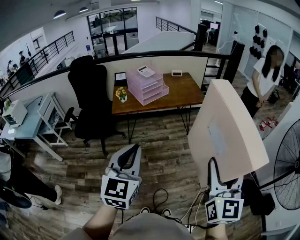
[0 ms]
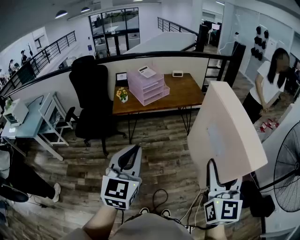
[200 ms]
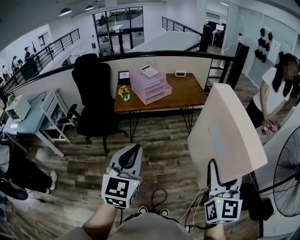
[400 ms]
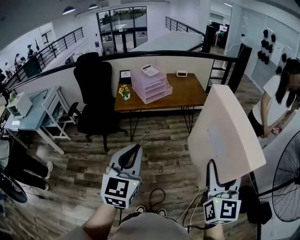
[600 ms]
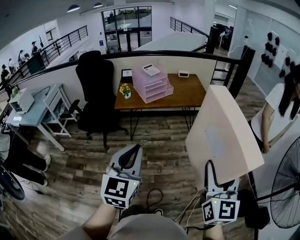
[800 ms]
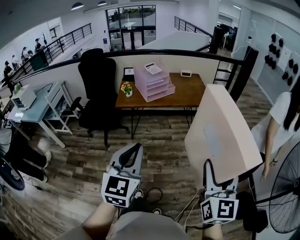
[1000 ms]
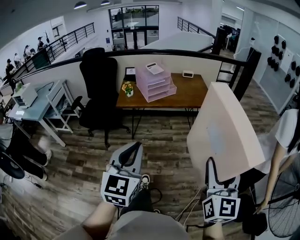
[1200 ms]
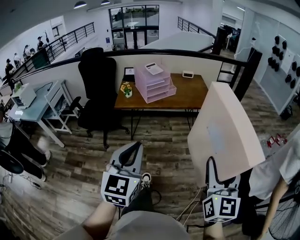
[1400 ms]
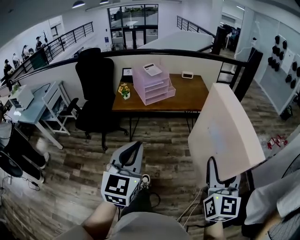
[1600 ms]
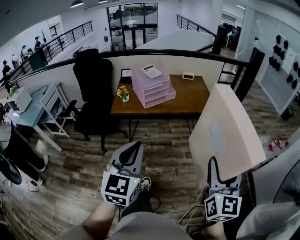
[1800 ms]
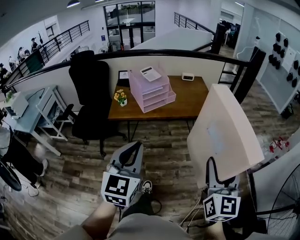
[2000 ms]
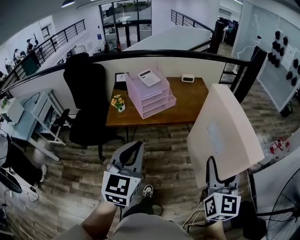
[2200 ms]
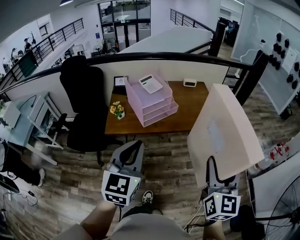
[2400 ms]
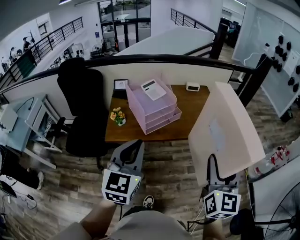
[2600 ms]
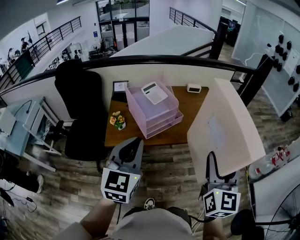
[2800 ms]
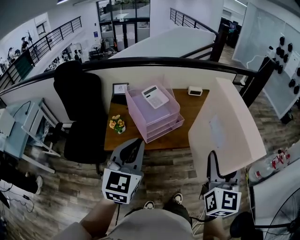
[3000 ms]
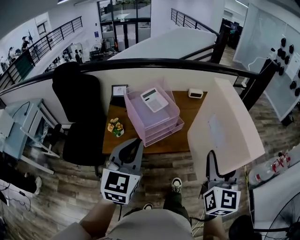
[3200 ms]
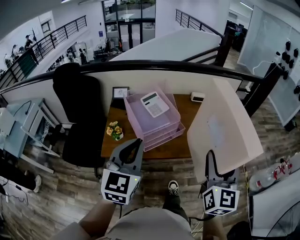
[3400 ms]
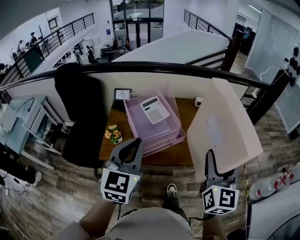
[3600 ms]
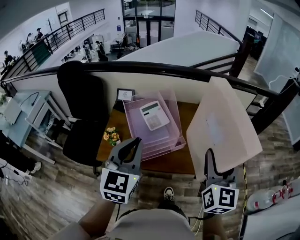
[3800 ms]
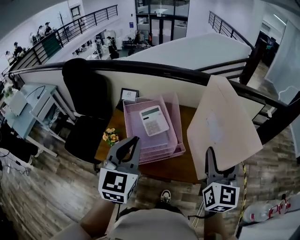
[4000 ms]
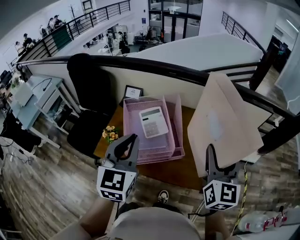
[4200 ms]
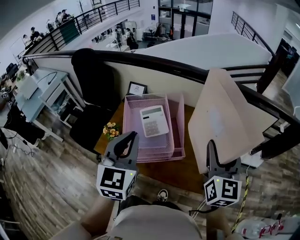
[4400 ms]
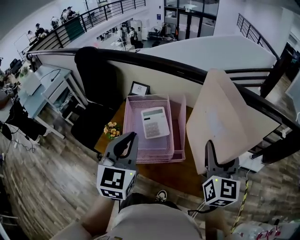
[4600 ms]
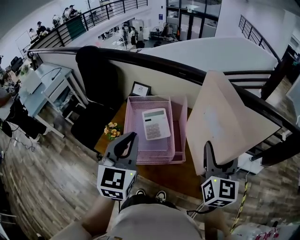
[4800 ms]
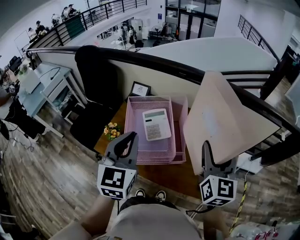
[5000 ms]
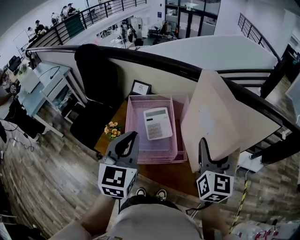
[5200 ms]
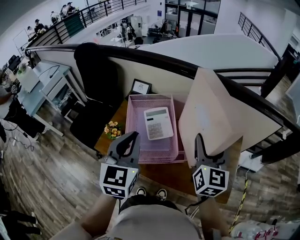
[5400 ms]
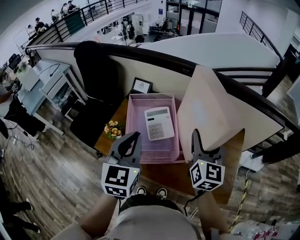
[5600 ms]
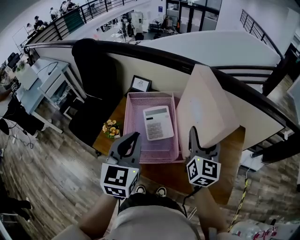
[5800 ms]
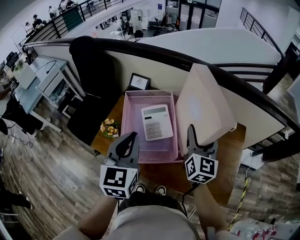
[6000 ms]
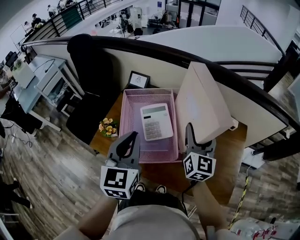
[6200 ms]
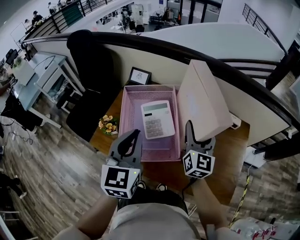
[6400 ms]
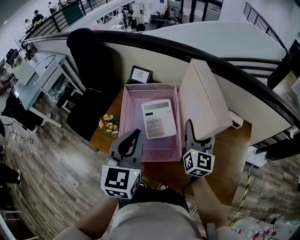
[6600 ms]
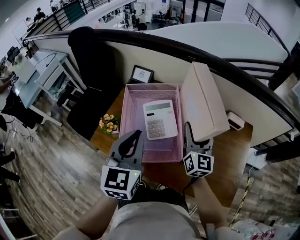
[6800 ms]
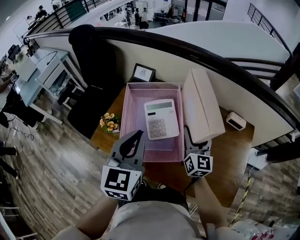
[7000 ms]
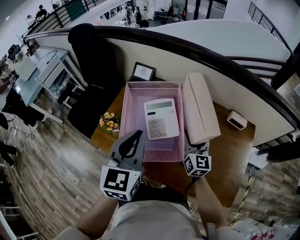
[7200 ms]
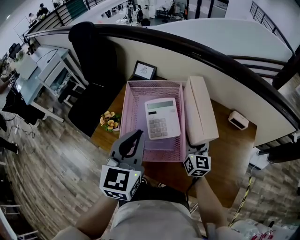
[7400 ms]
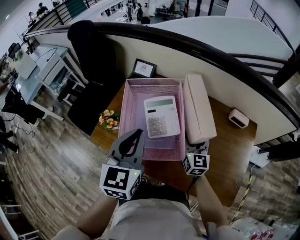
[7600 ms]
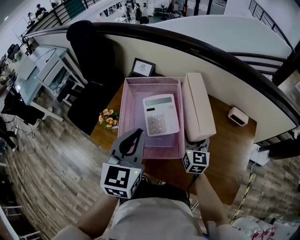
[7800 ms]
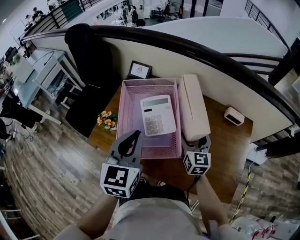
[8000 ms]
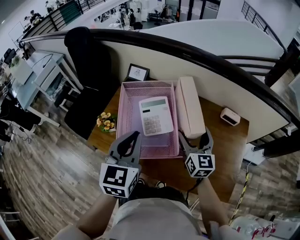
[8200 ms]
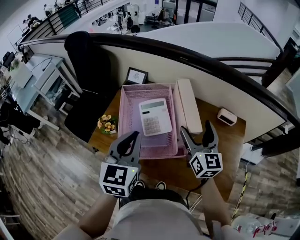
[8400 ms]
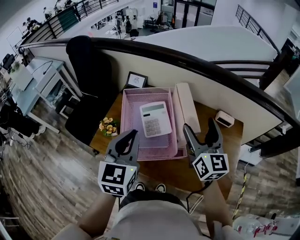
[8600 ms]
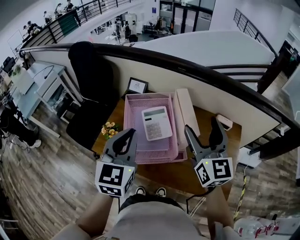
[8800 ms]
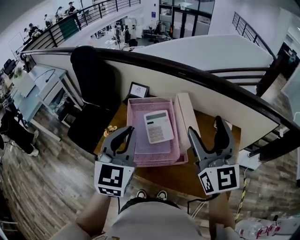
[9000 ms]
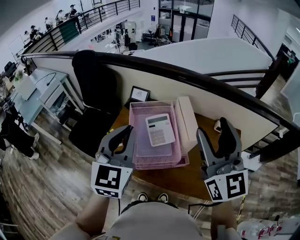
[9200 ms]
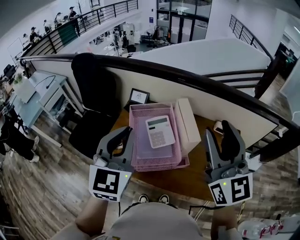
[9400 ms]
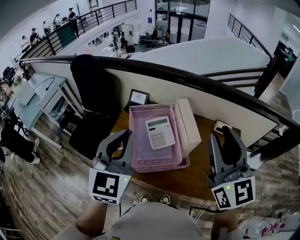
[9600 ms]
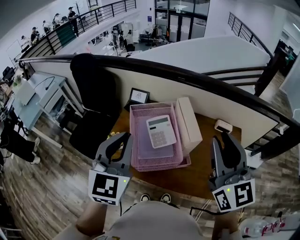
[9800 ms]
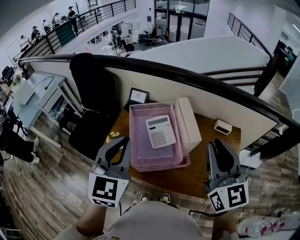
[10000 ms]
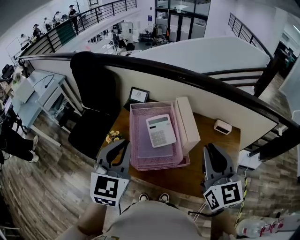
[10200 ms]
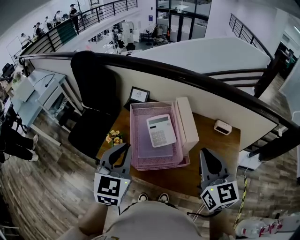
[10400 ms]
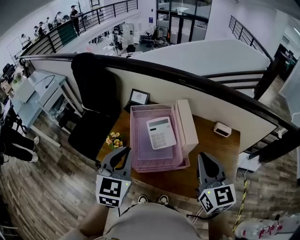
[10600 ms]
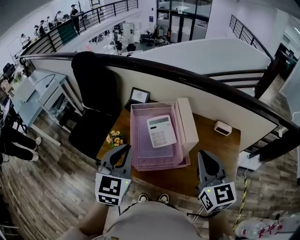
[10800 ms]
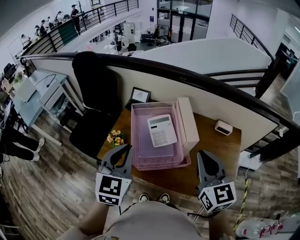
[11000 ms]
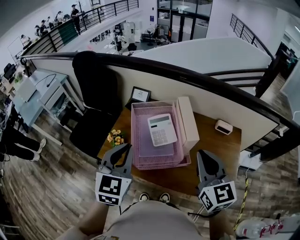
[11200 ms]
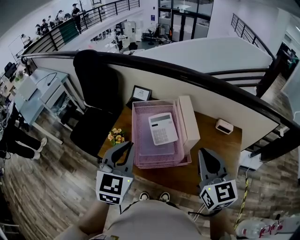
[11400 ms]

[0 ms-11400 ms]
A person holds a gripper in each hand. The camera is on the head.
0 ms to 1400 ms: The right gripper shifts approximately 10 cm forward and to the right. The left gripper shifts about 10 cm to the right.
1400 ms to 2800 ms: The pair of grippers is taken forward, approximately 40 cm.
2800 ms to 4200 ms: The two grippers go about 30 cm forward. The left gripper turns by some 20 degrees. Meanwhile the right gripper changes its angle by some 20 degrees.
4200 ms to 5600 ms: The left gripper shifts by roughly 5 cm; the right gripper is displaced forward, downward and to the left by roughly 15 cm.
5600 ms to 7200 ms: The left gripper moves downward, about 5 cm, while the right gripper travels downward by roughly 20 cm.
7200 ms to 8600 ms: The right gripper moves upward, approximately 20 cm. The left gripper changes place by roughly 5 cm.
8600 ms to 10000 ms: The right gripper goes about 15 cm upward and backward, and closes its fingers, while the left gripper travels upward by some 10 cm.
10000 ms to 11400 ms: The two grippers go some 5 cm downward.

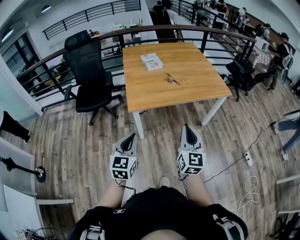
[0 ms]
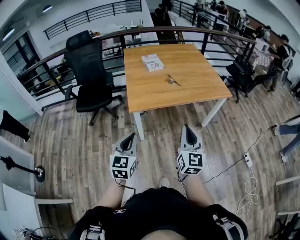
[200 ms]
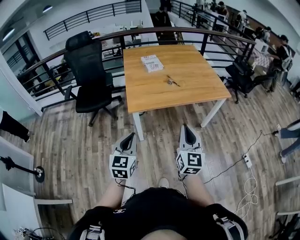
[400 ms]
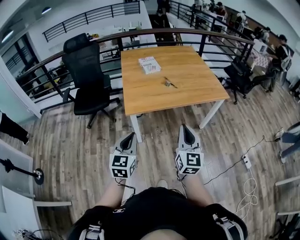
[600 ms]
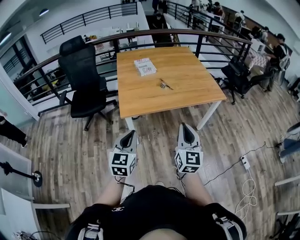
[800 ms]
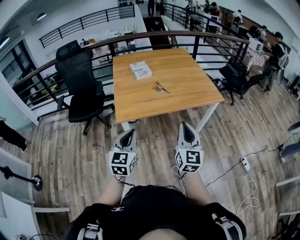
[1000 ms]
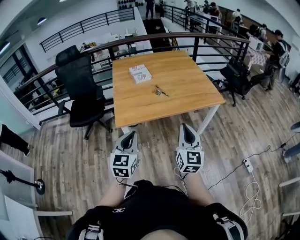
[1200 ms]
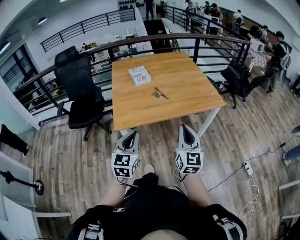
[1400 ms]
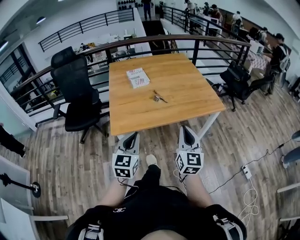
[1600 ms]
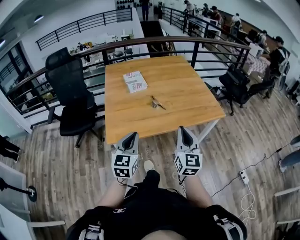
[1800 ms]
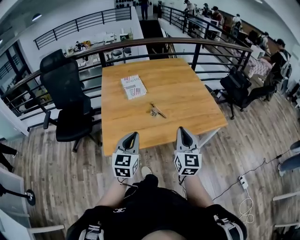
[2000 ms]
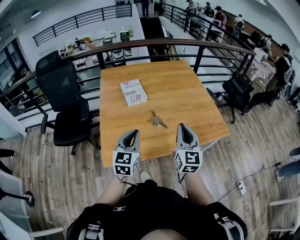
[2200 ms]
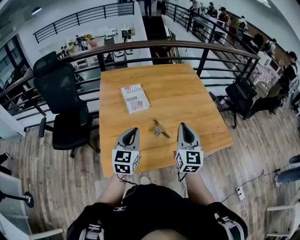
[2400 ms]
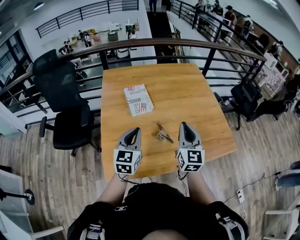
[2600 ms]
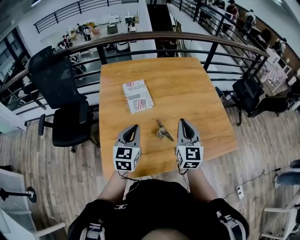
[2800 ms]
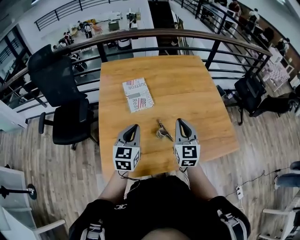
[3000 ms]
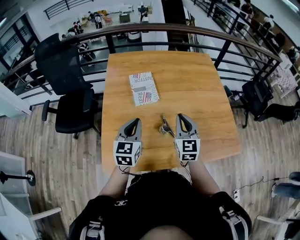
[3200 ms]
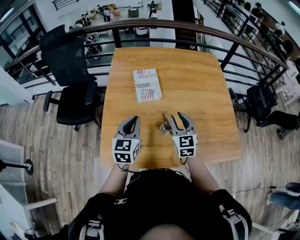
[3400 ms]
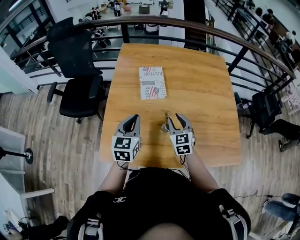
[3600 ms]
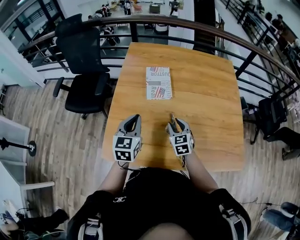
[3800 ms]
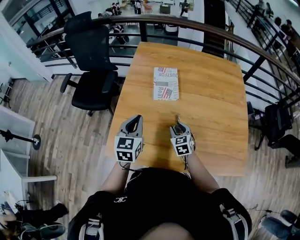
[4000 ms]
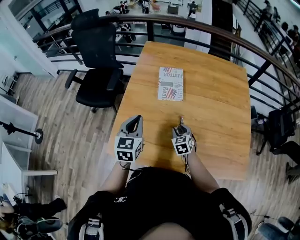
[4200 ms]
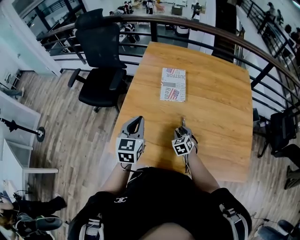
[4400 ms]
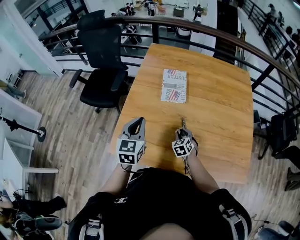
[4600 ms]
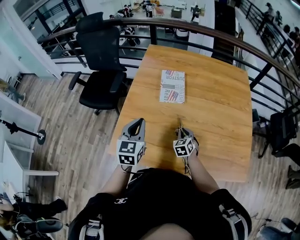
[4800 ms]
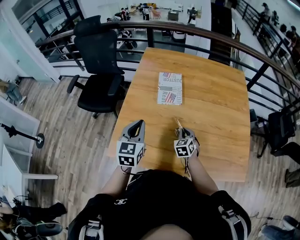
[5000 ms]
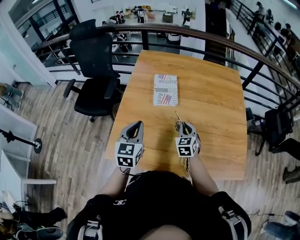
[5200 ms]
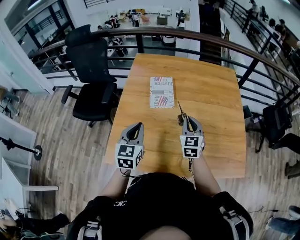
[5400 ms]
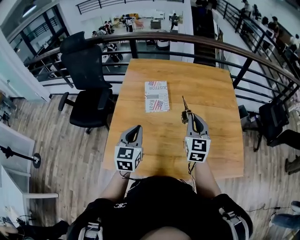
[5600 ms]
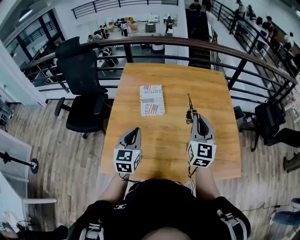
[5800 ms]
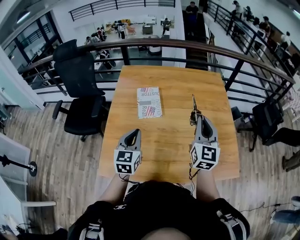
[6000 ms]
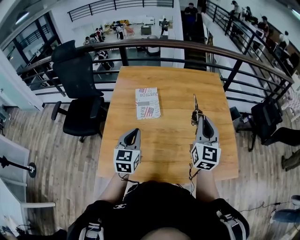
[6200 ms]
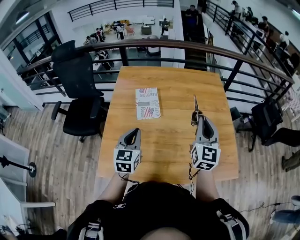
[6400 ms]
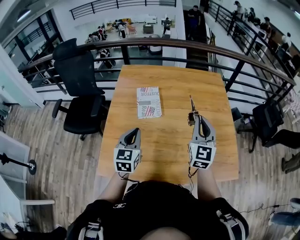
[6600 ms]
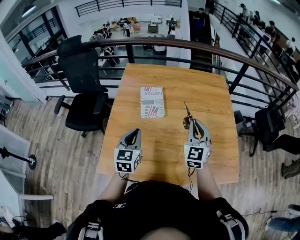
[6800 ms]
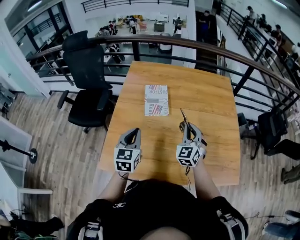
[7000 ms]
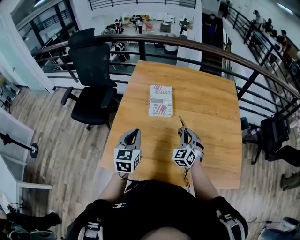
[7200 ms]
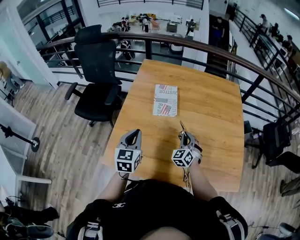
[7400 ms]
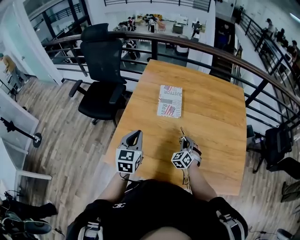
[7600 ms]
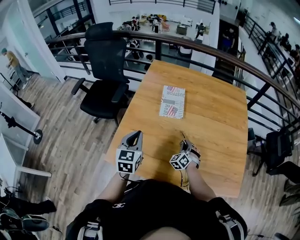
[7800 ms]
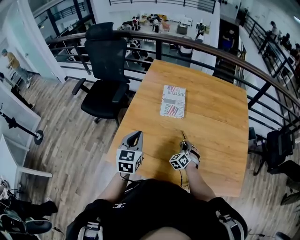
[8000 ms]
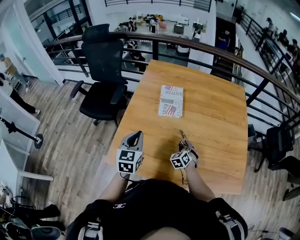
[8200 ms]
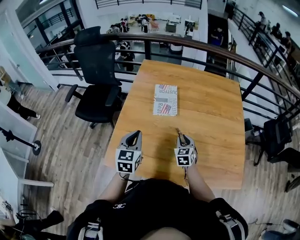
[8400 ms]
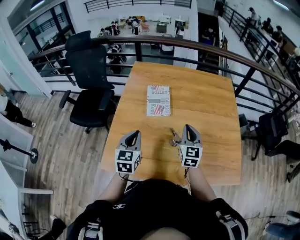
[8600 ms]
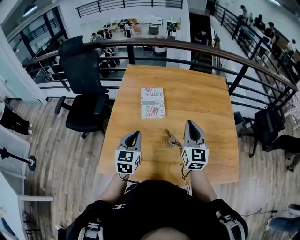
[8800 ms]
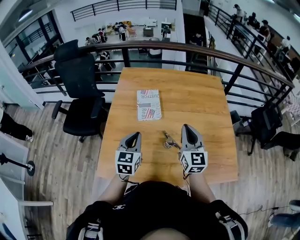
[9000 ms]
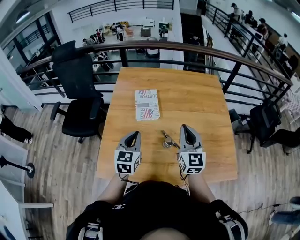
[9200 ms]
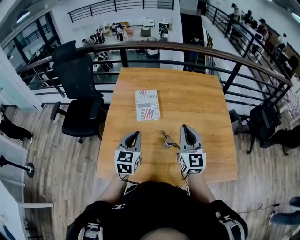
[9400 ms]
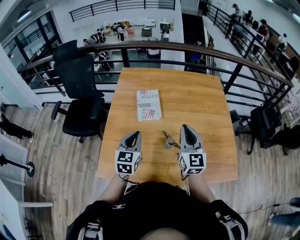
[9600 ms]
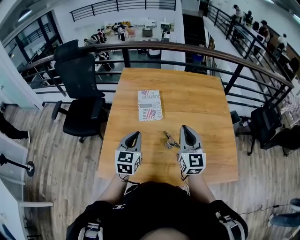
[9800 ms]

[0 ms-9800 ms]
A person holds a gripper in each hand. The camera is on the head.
0 ms to 1400 ms: Both grippers travel together forward and to the right, approximately 20 cm.
1400 ms to 2800 ms: The two grippers travel together, forward, some 60 cm.
2800 ms to 4200 ms: The left gripper changes place by roughly 5 cm, and rotates some 20 degrees. The right gripper travels downward by some 25 cm, tips its fingers downward by approximately 40 degrees, and opens its fingers.
4200 ms to 5600 ms: The right gripper moves upward and to the right, roughly 30 cm, angles its fingers upward, by about 30 degrees, and closes. The left gripper goes some 5 cm to the right.
5600 ms to 7000 ms: The right gripper travels downward by about 5 cm, and changes its angle by about 30 degrees.
7000 ms to 8400 ms: The right gripper is displaced downward by roughly 15 cm, turns by about 30 degrees, and opens up.
8400 ms to 9800 ms: The right gripper moves upward, roughly 20 cm, points its fingers roughly 30 degrees further upward, and closes its fingers; the left gripper shifts roughly 5 cm to the right.

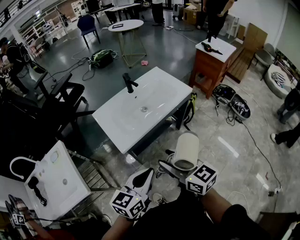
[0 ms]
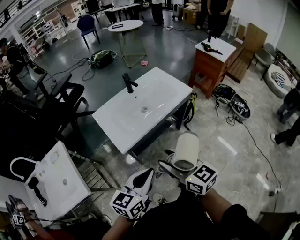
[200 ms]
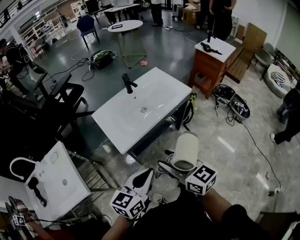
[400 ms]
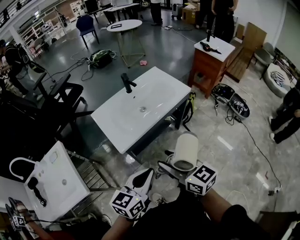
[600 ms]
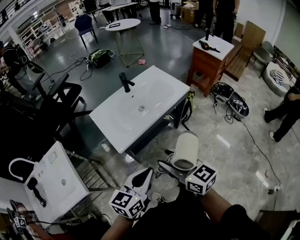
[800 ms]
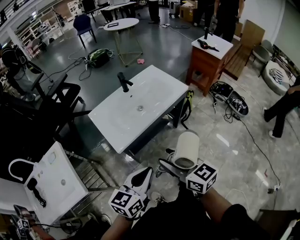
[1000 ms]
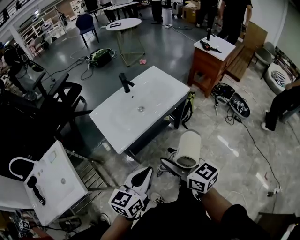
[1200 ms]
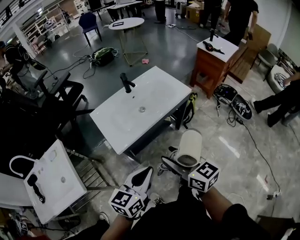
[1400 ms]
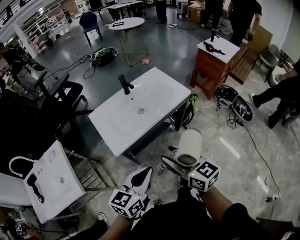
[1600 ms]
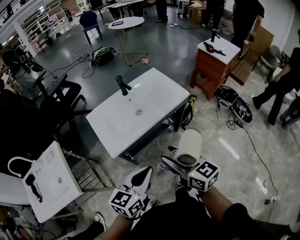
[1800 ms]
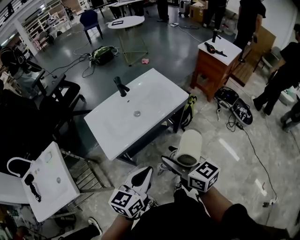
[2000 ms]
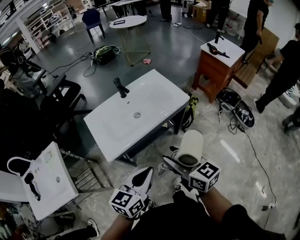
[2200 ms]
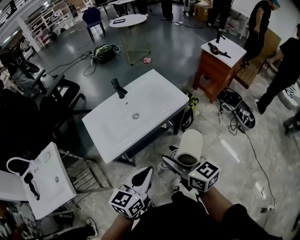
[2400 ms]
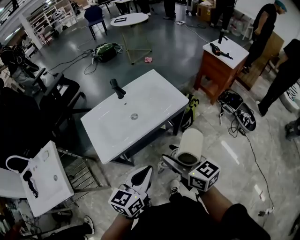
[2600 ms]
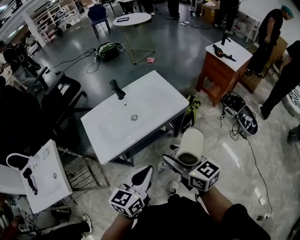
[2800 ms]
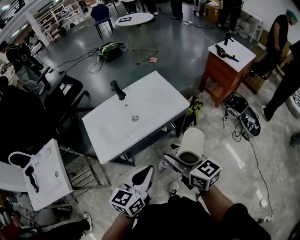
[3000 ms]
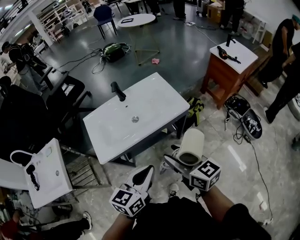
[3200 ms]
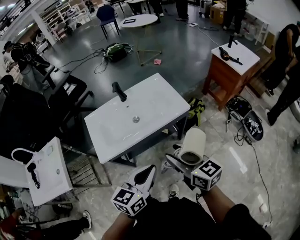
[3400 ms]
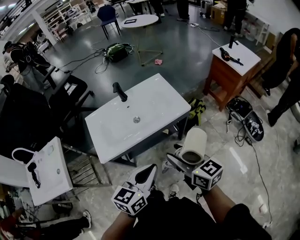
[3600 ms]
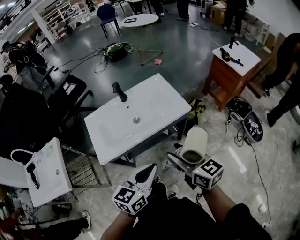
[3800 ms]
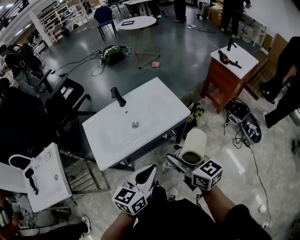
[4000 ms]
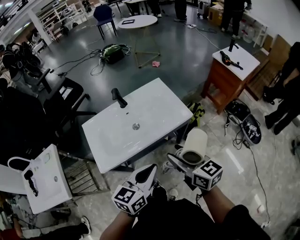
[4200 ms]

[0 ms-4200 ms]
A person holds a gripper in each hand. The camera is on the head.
0 ms to 1400 ms: The right gripper shifts by about 5 cm.
1400 ms to 2800 ms: Both grippers move to the right and forward, some 15 cm.
2800 ms to 4200 ms: The two grippers go roughly 5 cm forward.
